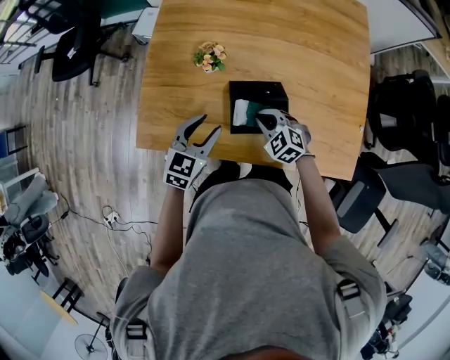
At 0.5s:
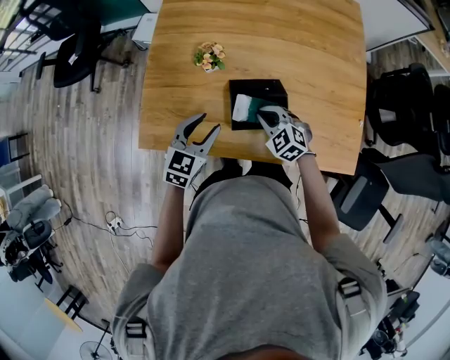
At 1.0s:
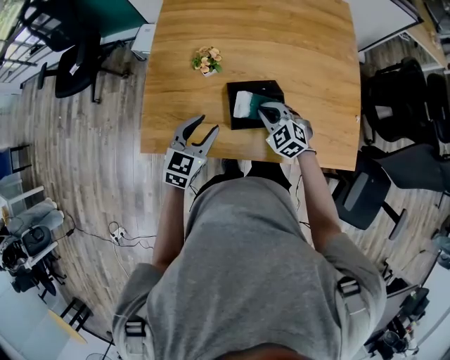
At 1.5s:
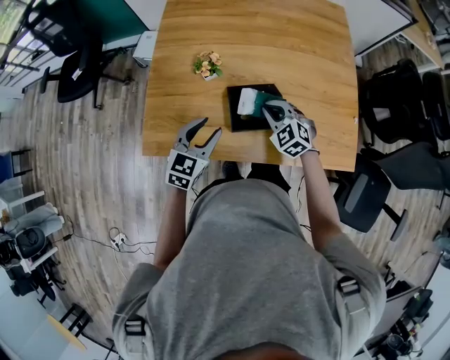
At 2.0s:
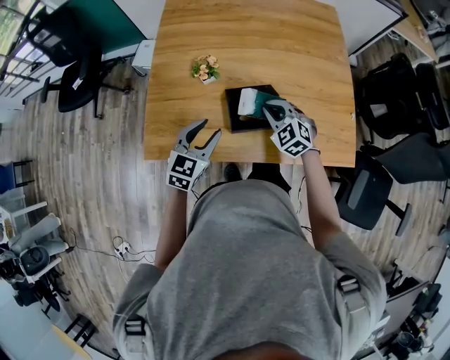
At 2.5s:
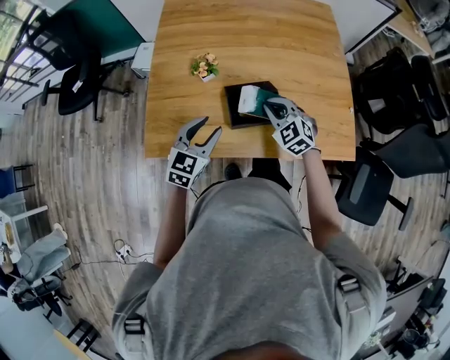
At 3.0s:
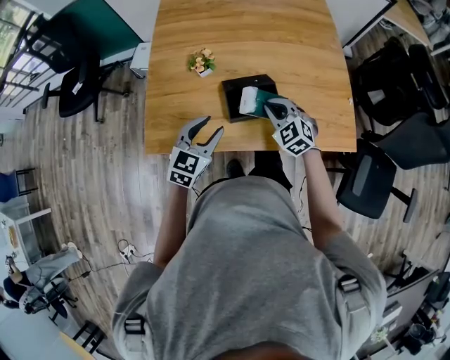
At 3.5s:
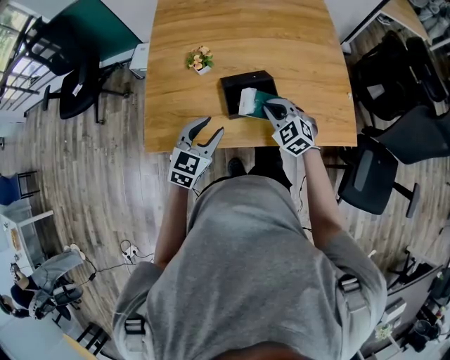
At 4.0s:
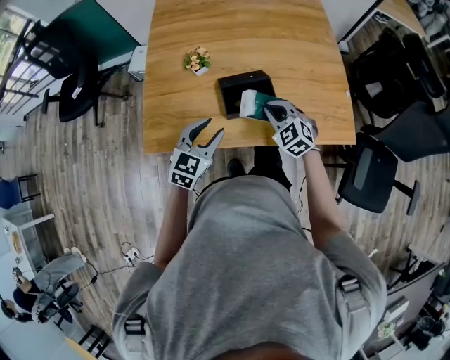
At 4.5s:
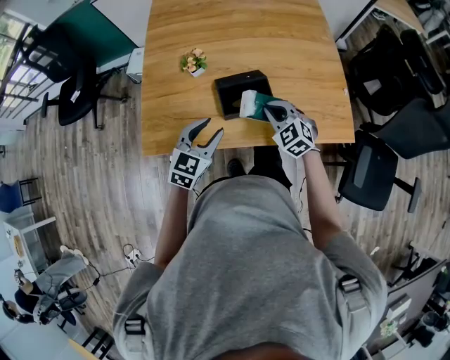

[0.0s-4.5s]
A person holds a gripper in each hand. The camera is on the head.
0.0s to 2.0s: The left gripper shifts by about 5 cm. The right gripper goes roughly 10 cm upward.
2.0s to 4.5s: The two grippers go about 5 cm backward.

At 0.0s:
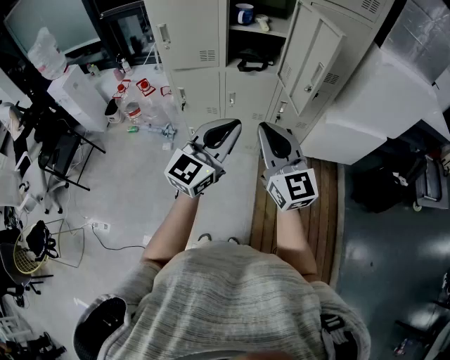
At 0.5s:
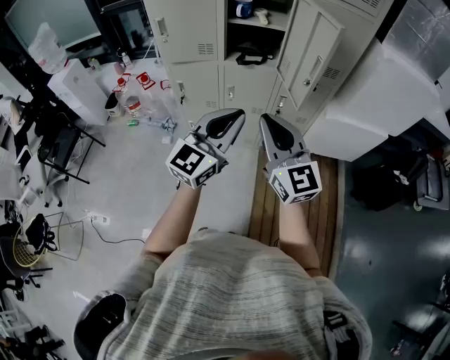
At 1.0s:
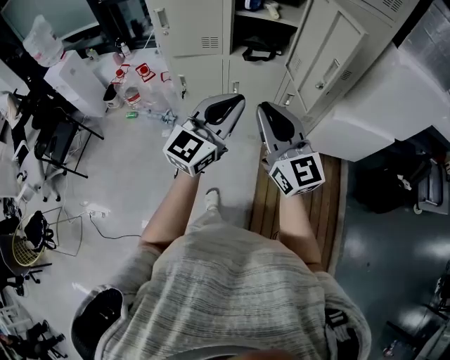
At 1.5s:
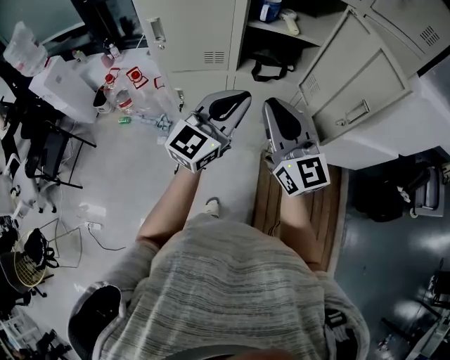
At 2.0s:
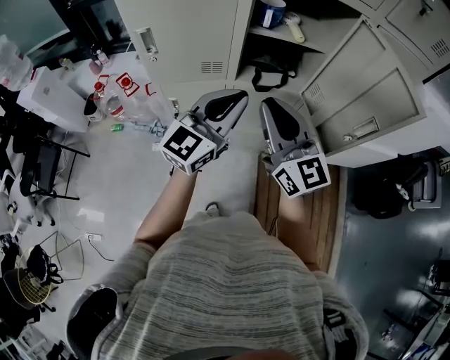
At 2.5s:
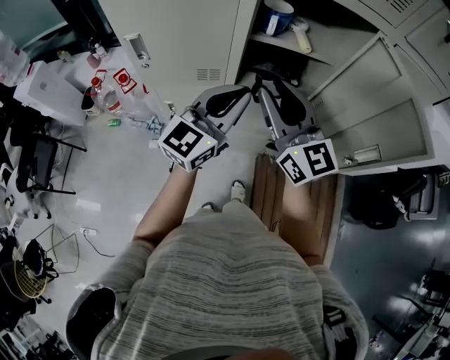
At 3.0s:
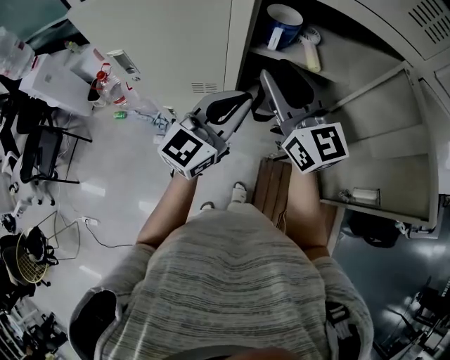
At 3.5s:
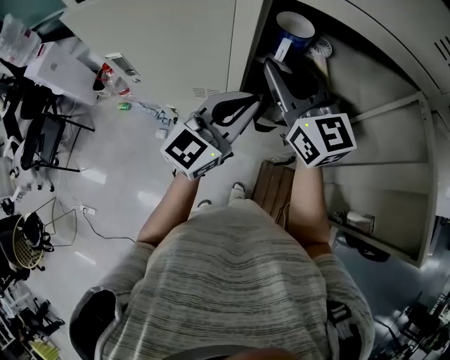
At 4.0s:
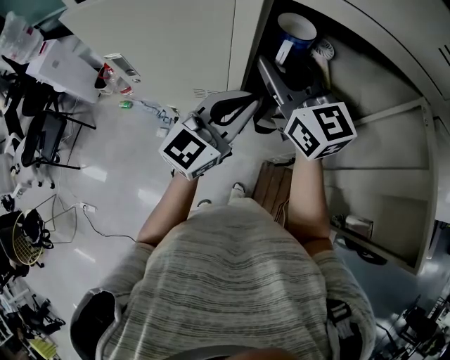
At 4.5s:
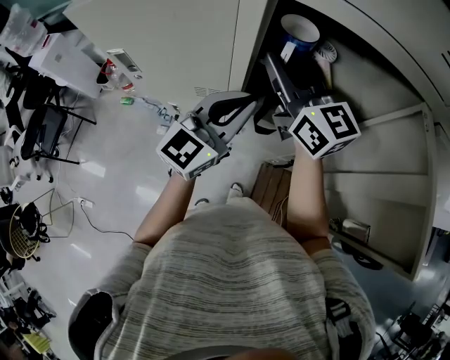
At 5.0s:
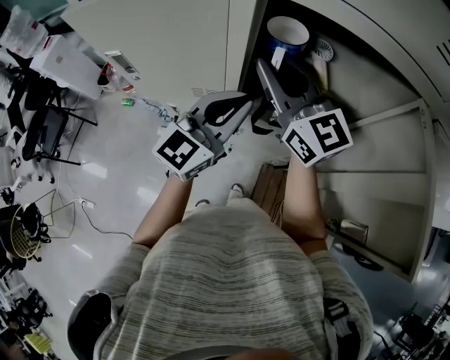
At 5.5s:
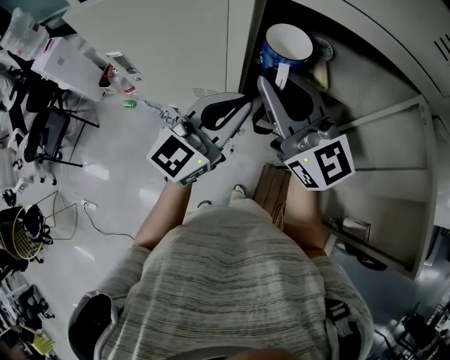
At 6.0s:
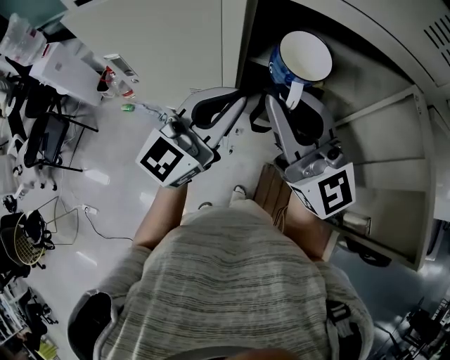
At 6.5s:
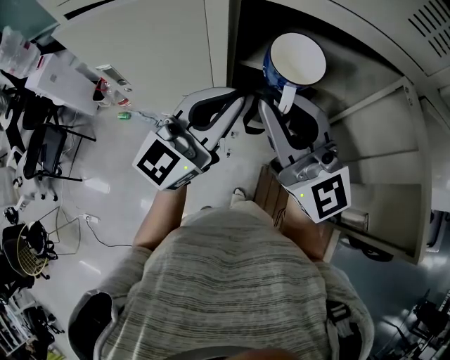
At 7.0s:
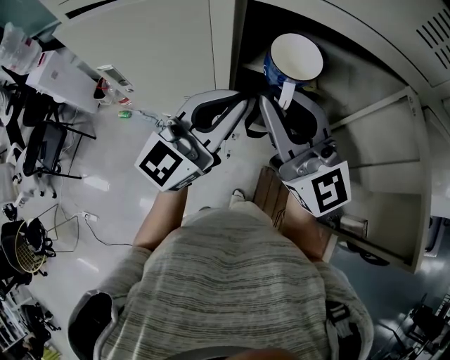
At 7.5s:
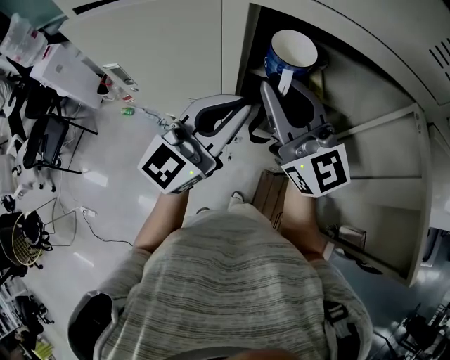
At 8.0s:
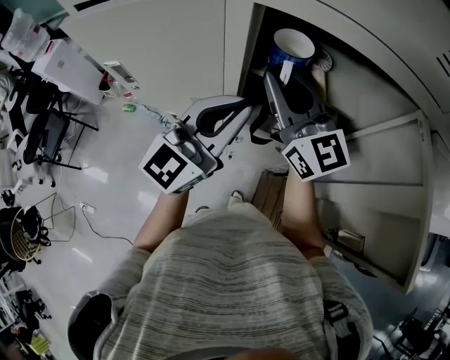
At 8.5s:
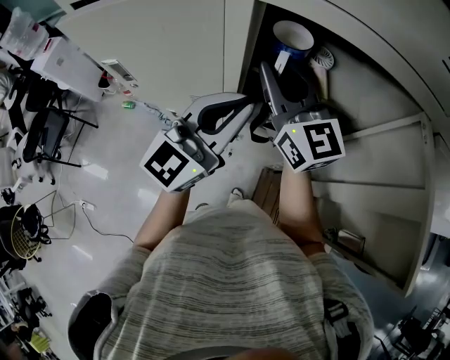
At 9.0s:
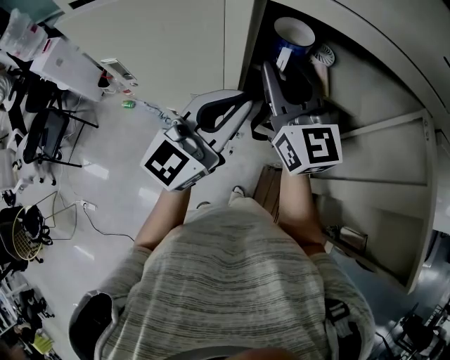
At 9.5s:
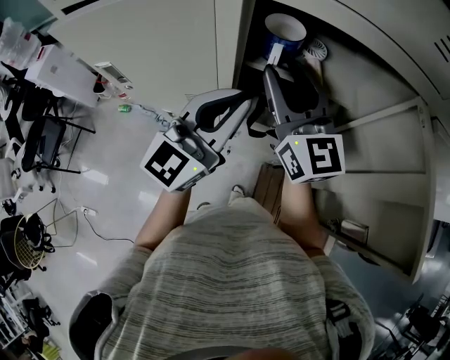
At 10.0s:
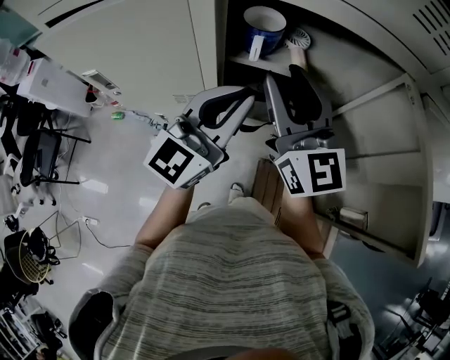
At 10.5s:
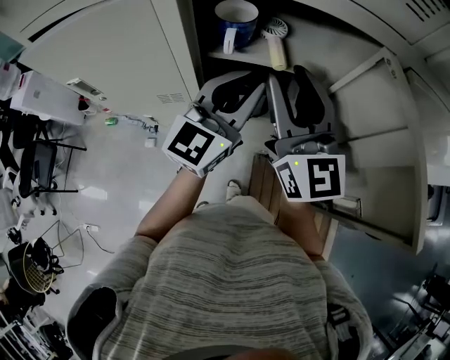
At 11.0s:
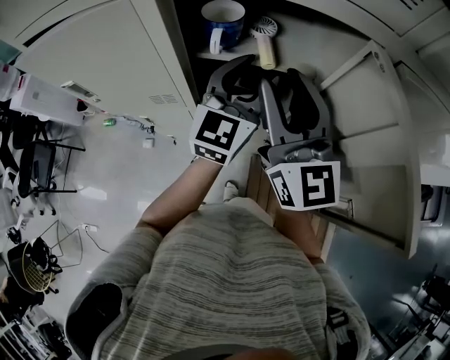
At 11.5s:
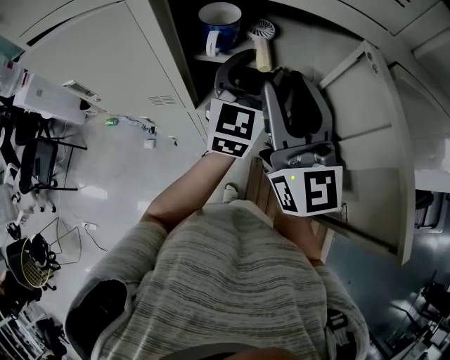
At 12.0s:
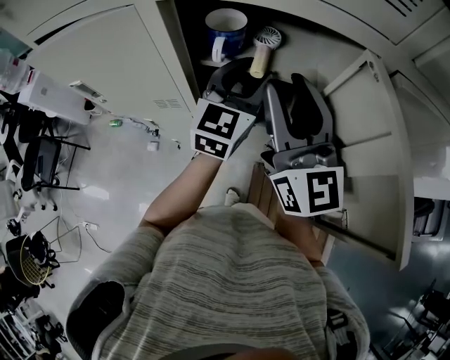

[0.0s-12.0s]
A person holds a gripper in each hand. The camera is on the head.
0.0s to 2.0s: The grippers both shift forward by some 25 cm.
2.0s to 4.0s: The left gripper shifts roughly 15 cm forward. Meanwhile the right gripper heads forward, covering some 25 cm, and opens.
4.0s to 6.0s: The right gripper moves backward and upward, approximately 15 cm, and rotates roughly 20 degrees, while the left gripper is displaced upward by roughly 5 cm.
6.0s to 8.0s: The right gripper is displaced forward by approximately 10 cm.
8.0s to 10.0s: The right gripper travels to the right by roughly 5 cm, and opens its fingers.
10.0s to 12.0s: The left gripper is displaced forward and to the right by some 10 cm, rotates some 20 degrees, and opens its fingers, while the right gripper heads to the right, covering approximately 5 cm.

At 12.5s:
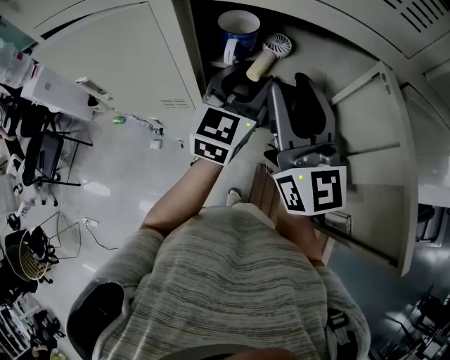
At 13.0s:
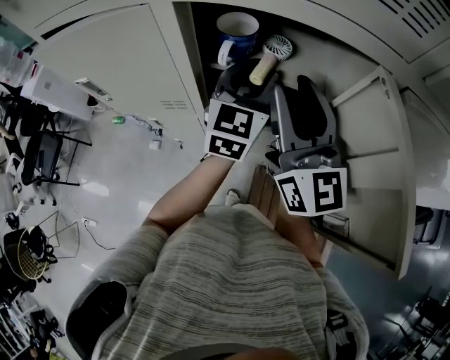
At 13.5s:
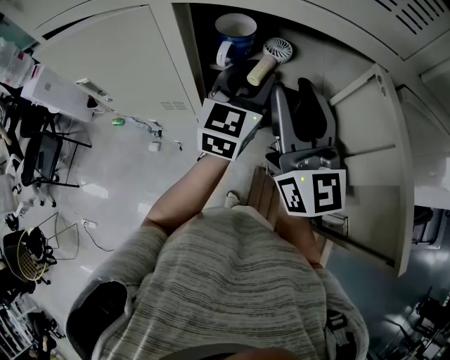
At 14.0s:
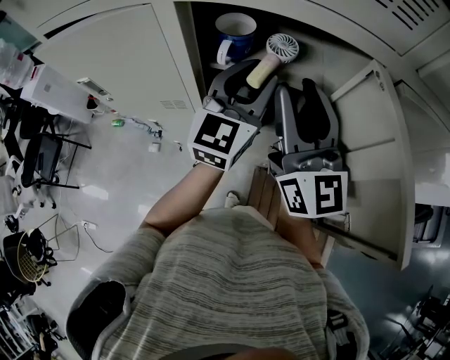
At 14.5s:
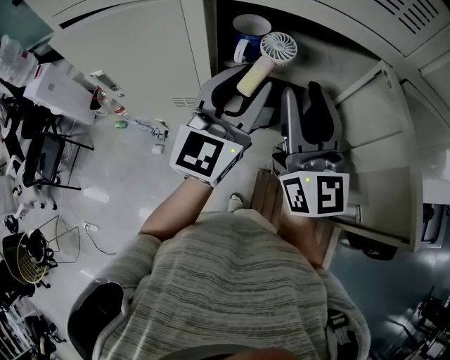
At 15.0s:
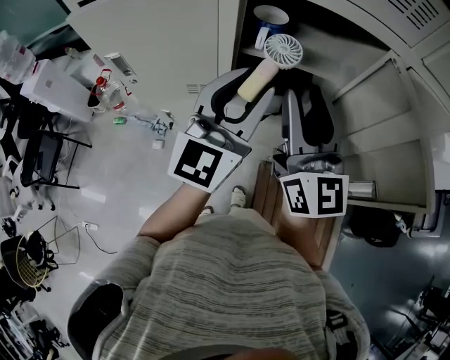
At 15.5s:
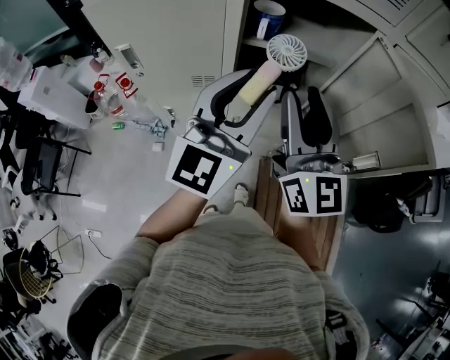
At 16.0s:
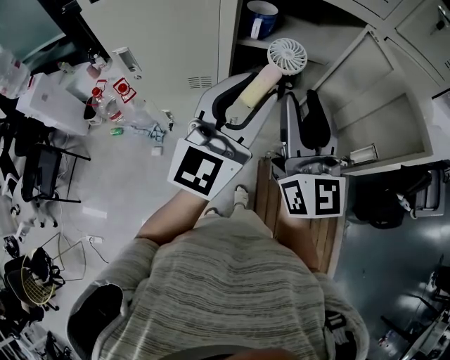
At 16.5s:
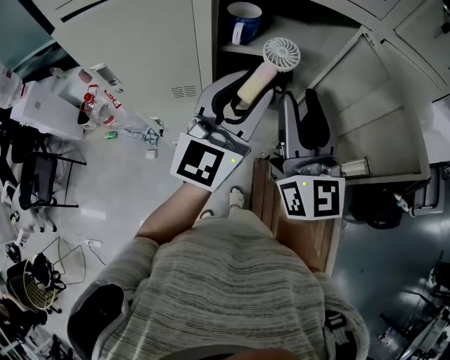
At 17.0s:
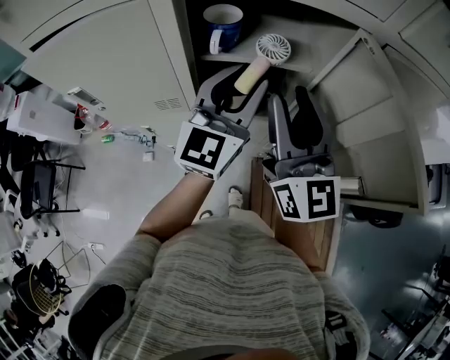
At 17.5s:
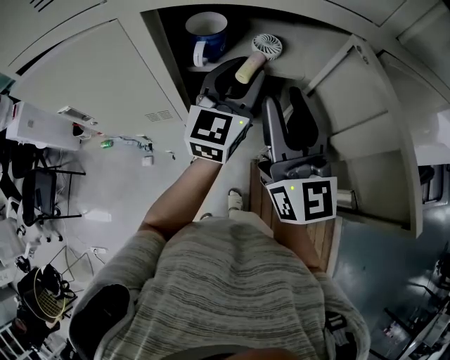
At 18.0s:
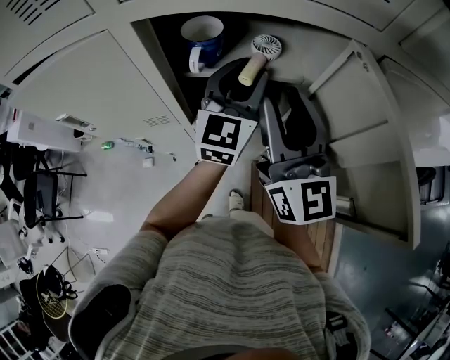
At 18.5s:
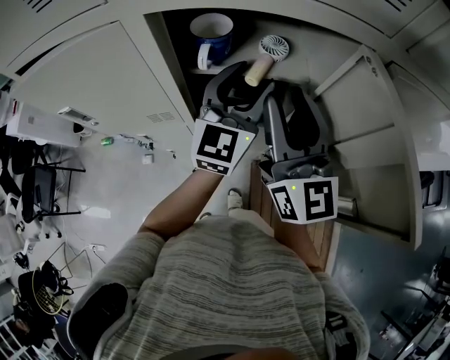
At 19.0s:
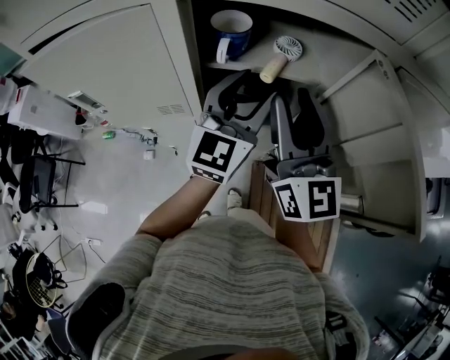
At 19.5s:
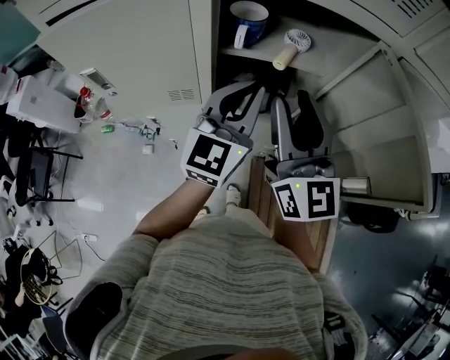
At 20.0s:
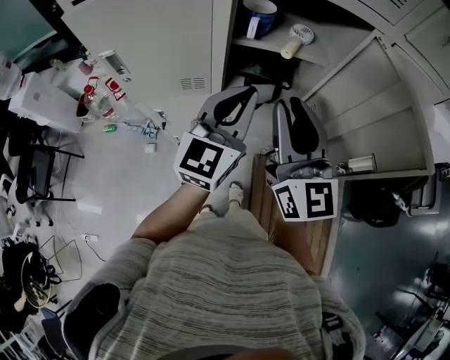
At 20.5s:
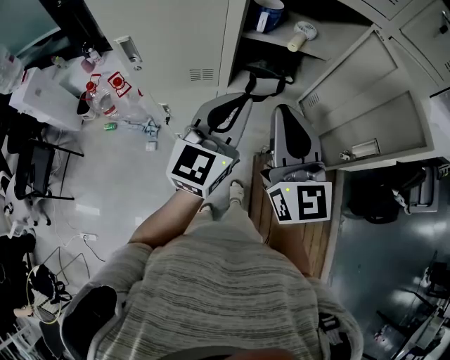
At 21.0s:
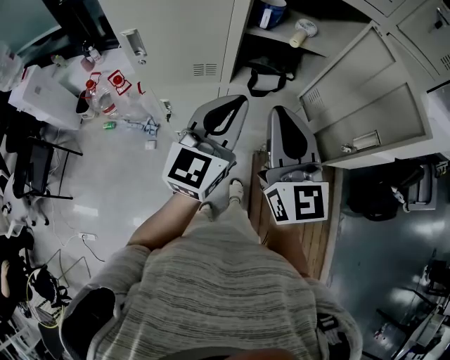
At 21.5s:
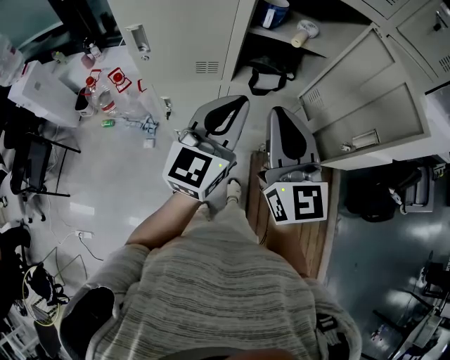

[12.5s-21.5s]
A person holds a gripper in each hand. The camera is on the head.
12.5s to 14.5s: The left gripper goes roughly 10 cm upward and backward.
14.5s to 17.0s: The left gripper goes backward and returns, approximately 15 cm each way, while the right gripper reaches some 10 cm backward, then returns.
17.0s to 19.5s: The left gripper moves about 10 cm forward and comes back, and closes up.
19.5s to 21.5s: Both grippers move backward and to the left, about 15 cm. The right gripper closes up.

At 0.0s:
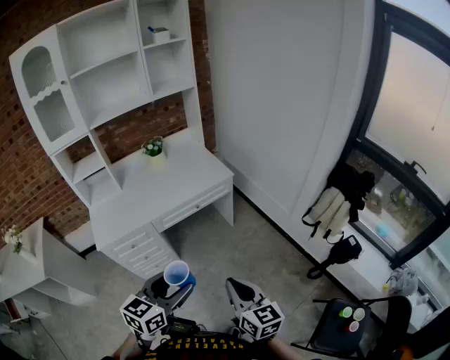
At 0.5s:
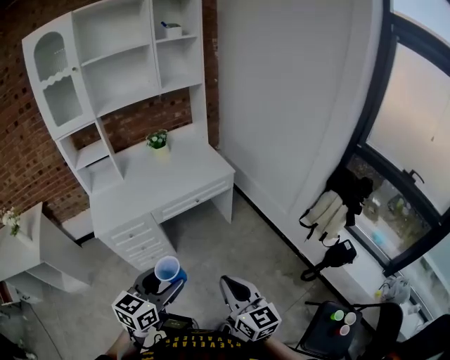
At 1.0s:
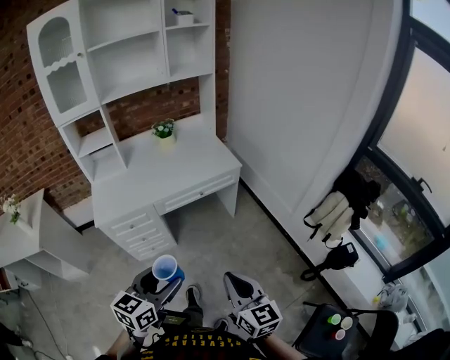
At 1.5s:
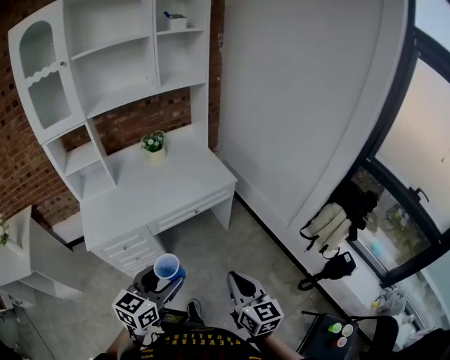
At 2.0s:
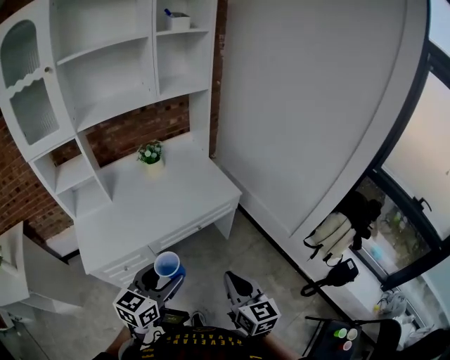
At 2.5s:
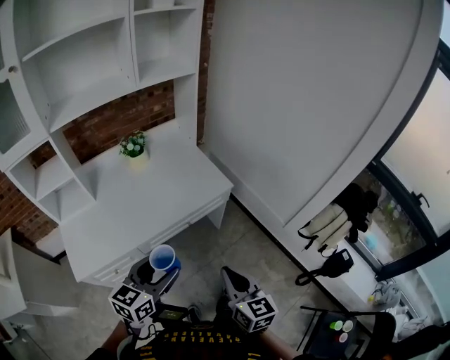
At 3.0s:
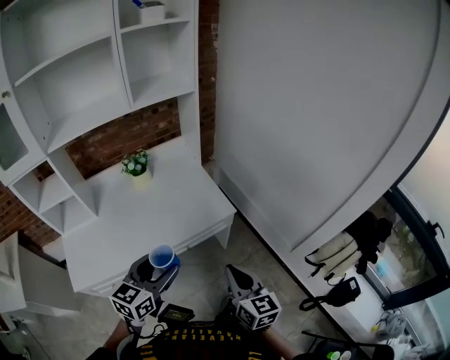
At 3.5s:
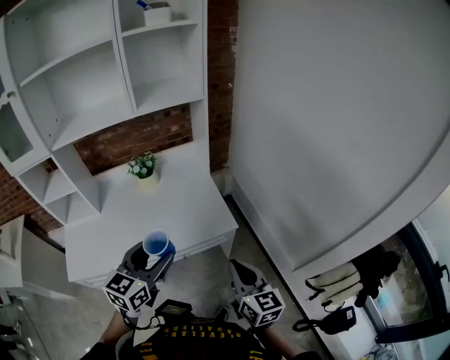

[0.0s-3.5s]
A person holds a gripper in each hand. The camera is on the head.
0.0s to 2.0s: Both grippers travel together forward and to the left, some 25 cm.
2.0s to 3.5s: The left gripper is displaced forward by approximately 25 cm. The right gripper is displaced forward and to the right by about 30 cm.
